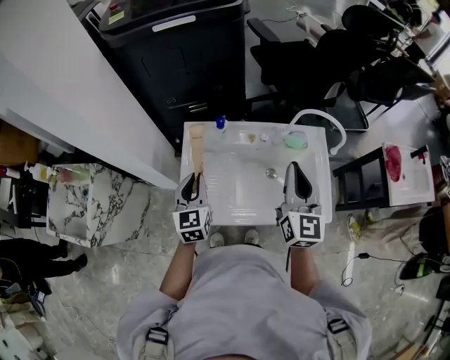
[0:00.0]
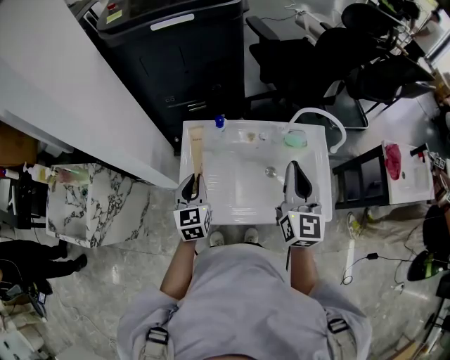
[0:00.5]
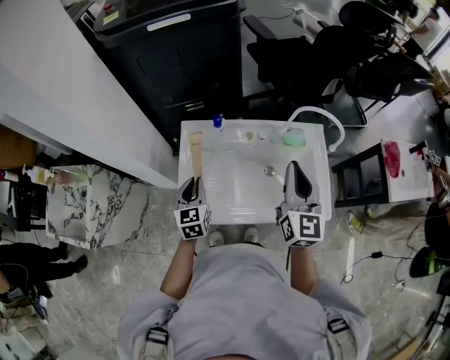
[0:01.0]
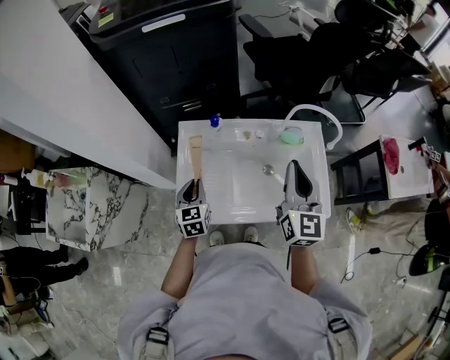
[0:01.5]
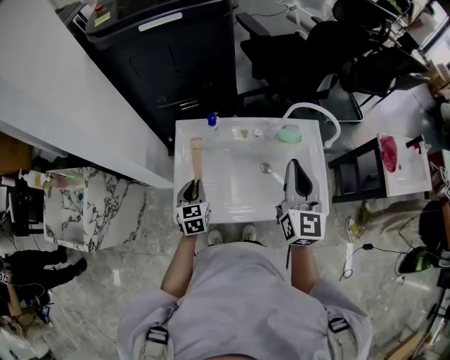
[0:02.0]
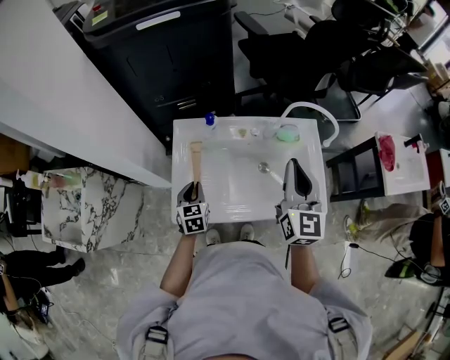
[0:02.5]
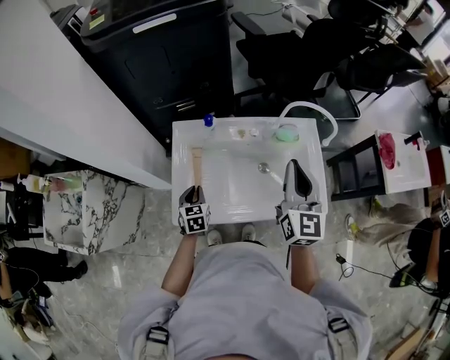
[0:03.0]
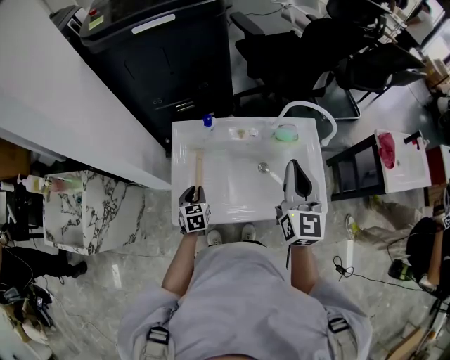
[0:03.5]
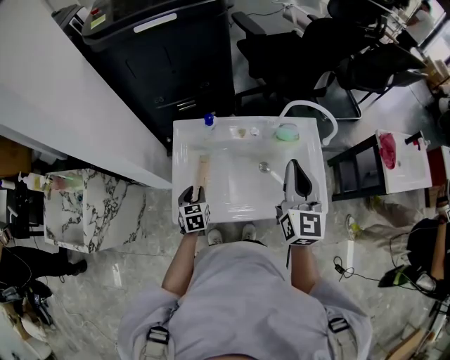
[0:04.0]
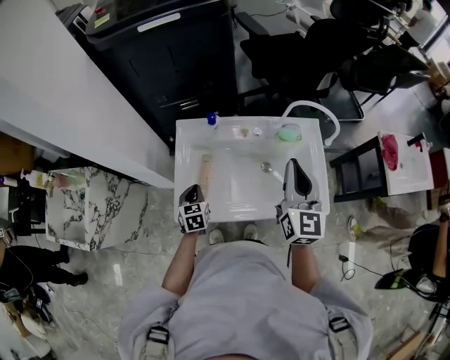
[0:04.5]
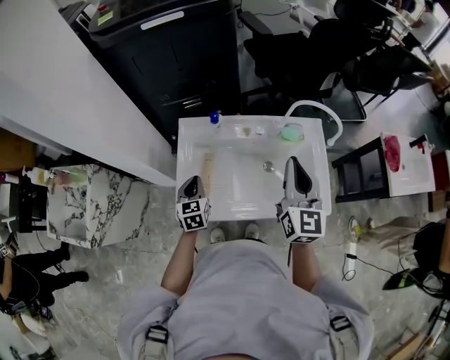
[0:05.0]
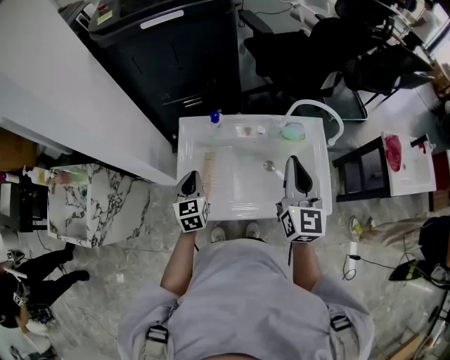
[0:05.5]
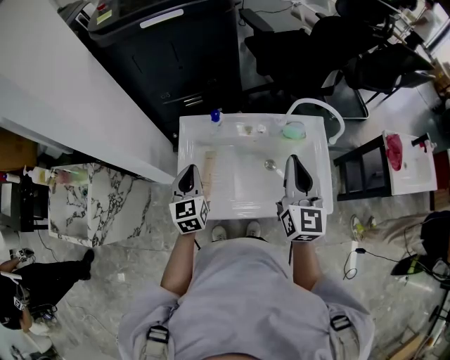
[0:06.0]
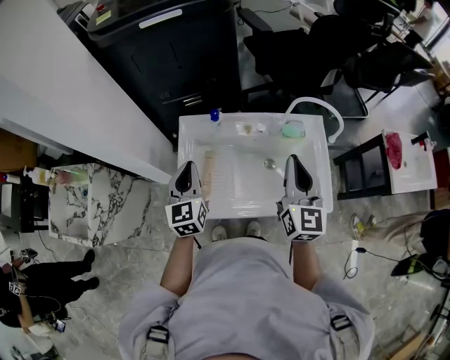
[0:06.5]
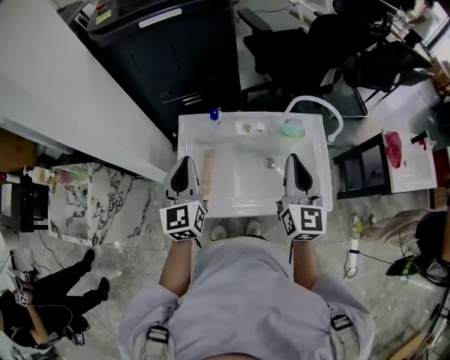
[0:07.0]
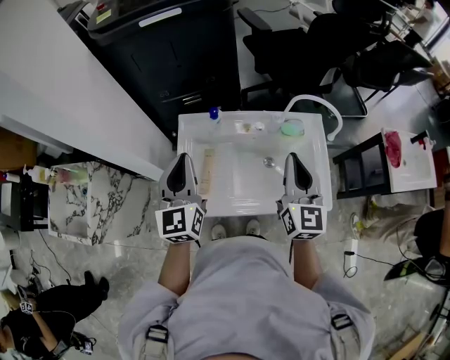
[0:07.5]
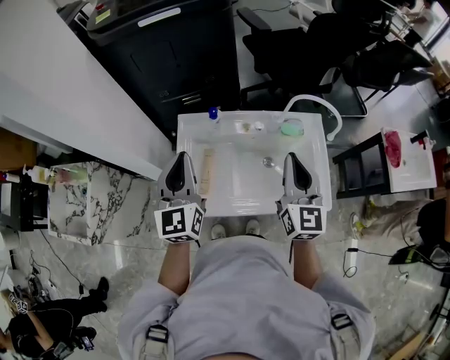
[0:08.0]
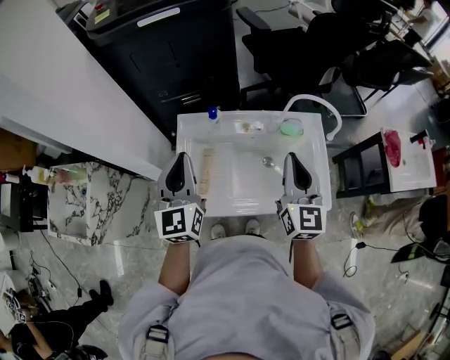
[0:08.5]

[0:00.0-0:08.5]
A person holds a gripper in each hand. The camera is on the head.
0:00.0 to 0:02.0: The left gripper goes about 10 cm downward.
0:02.0 to 0:04.0: The left gripper is displaced downward by approximately 5 cm.
0:04.0 to 0:06.5: The left gripper shifts roughly 20 cm upward, turns by approximately 30 degrees, and closes its fingers.
0:06.5 to 0:08.5: The left gripper goes about 10 cm upward.

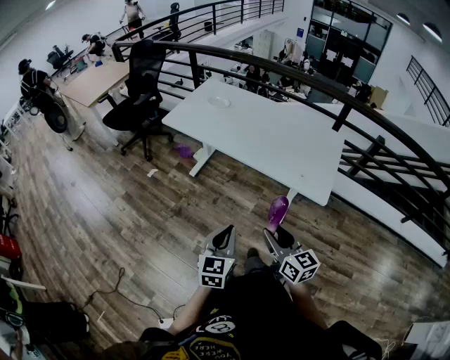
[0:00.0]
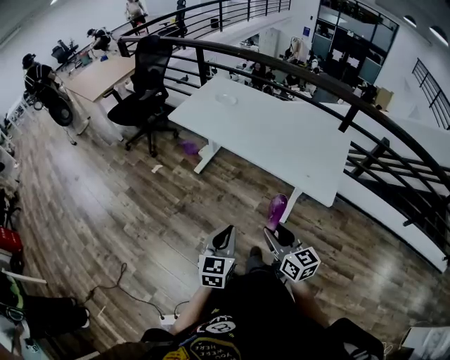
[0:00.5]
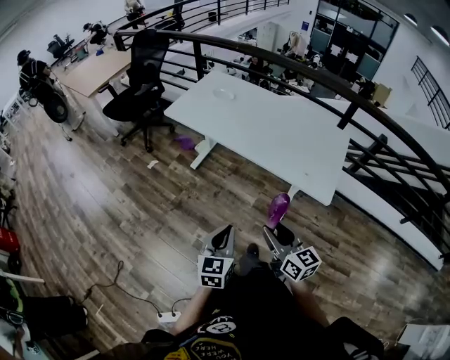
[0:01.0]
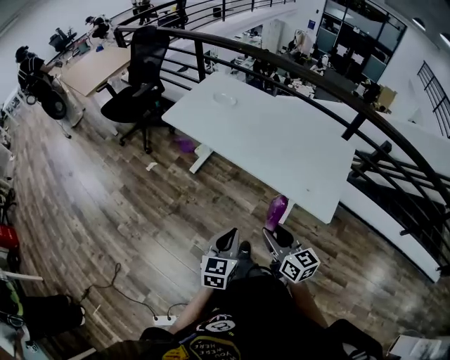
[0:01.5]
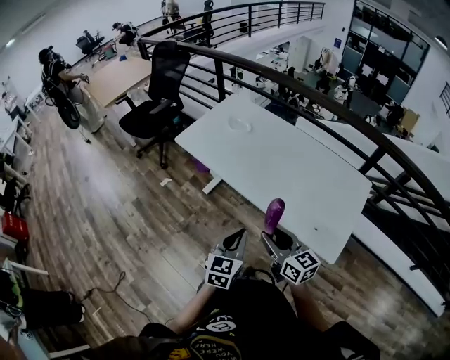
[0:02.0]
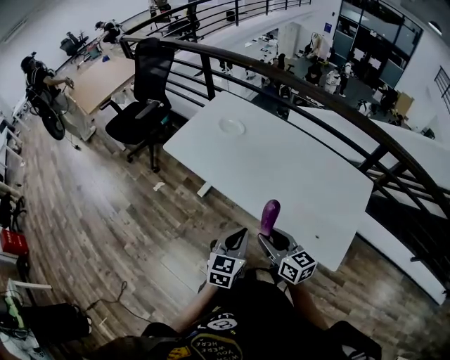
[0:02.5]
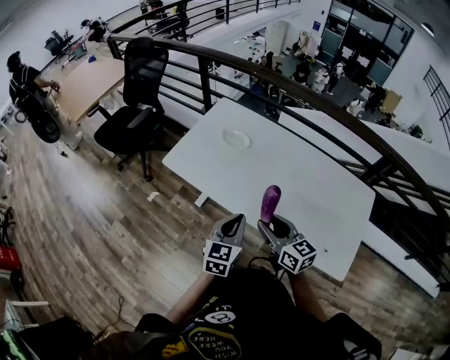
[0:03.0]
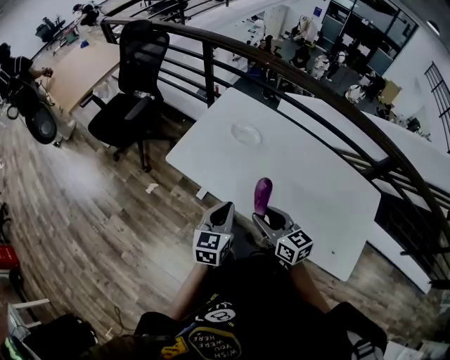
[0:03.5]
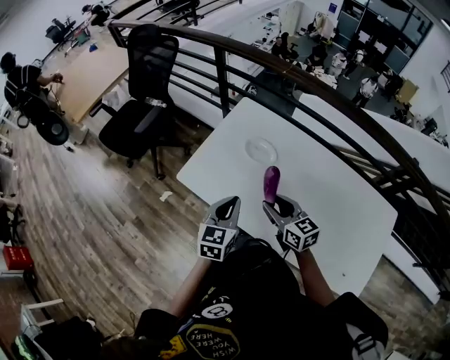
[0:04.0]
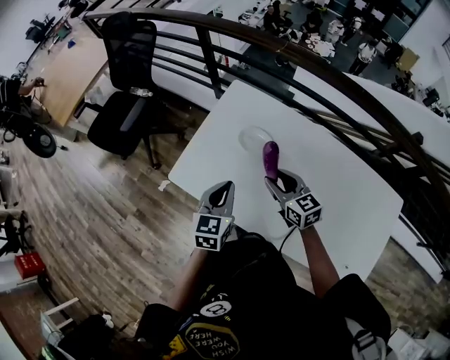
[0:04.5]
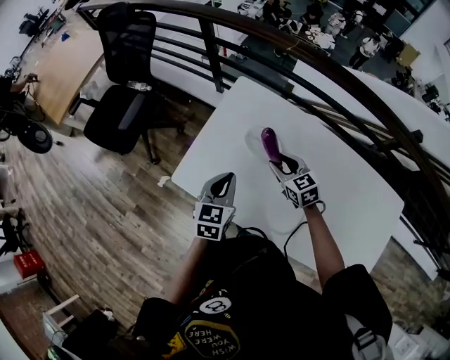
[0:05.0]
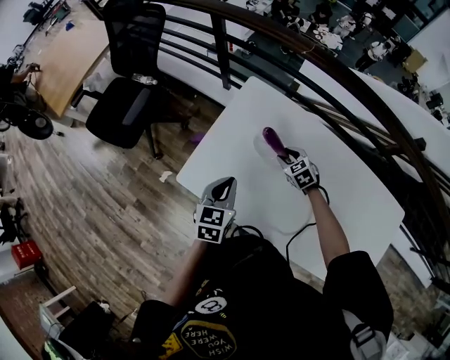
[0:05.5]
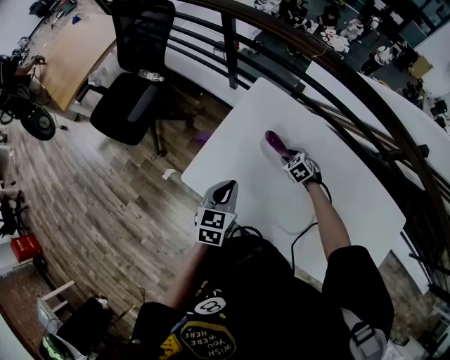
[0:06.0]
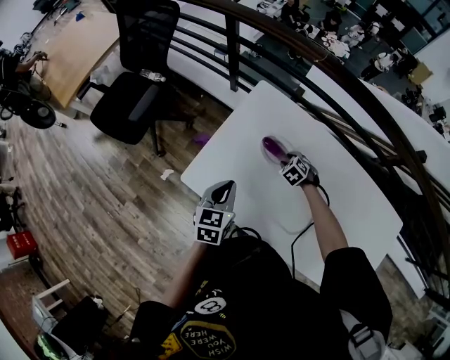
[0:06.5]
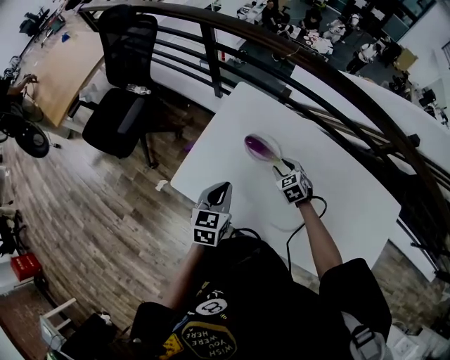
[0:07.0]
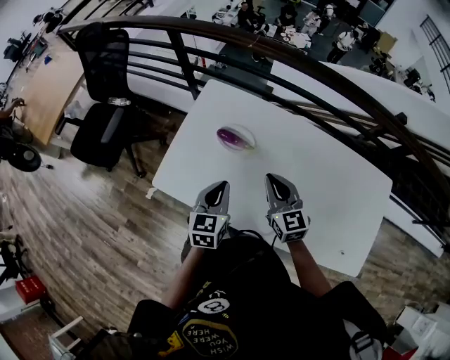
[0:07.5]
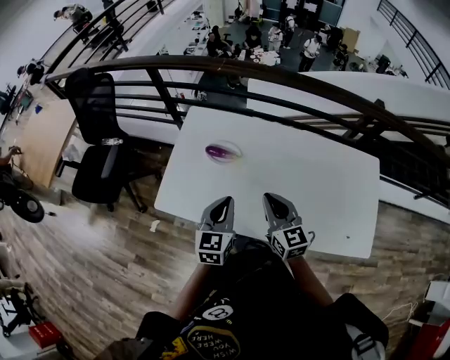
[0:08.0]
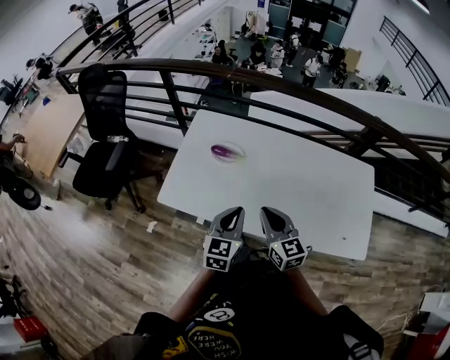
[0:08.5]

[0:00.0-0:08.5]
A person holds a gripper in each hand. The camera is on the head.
0:00.0 to 0:02.0: Both grippers move forward, approximately 25 cm.
0:02.0 to 0:04.0: The two grippers travel together, forward, roughly 50 cm.
0:04.0 to 0:06.5: The right gripper heads downward and forward, covering some 40 cm, and angles its fingers downward, by roughly 50 degrees; the left gripper shifts approximately 20 cm forward, downward and to the left.
0:06.5 to 0:08.5: The left gripper heads backward, to the right and upward, covering roughly 25 cm, and turns by approximately 30 degrees. Meanwhile the right gripper is displaced backward and upward by about 50 cm, points its fingers some 60 degrees further upward, and closes its fingers.

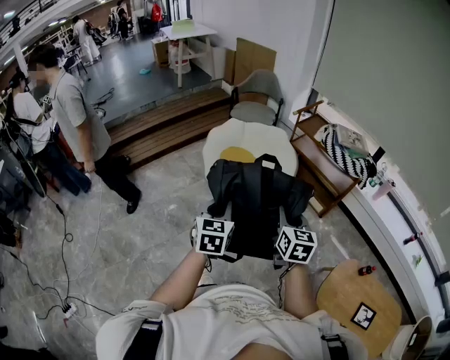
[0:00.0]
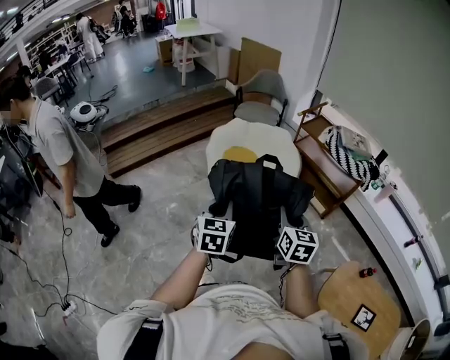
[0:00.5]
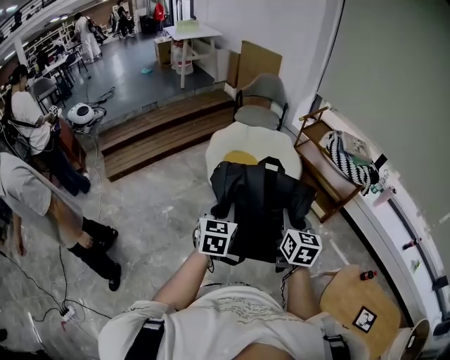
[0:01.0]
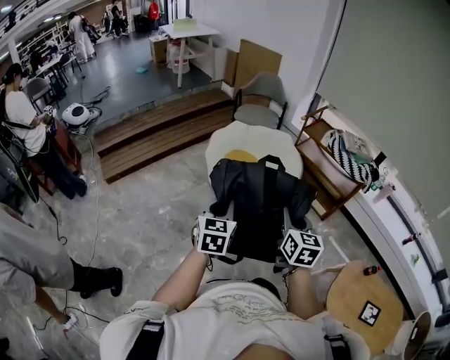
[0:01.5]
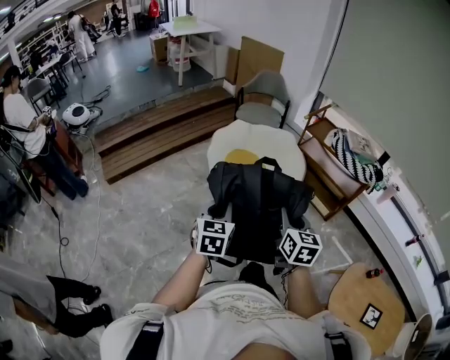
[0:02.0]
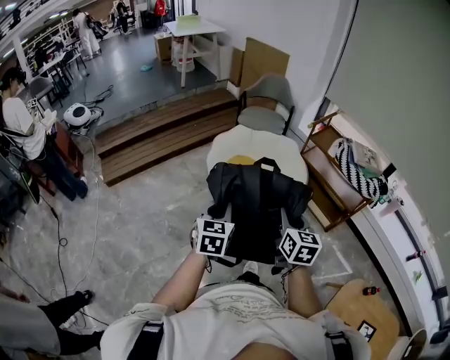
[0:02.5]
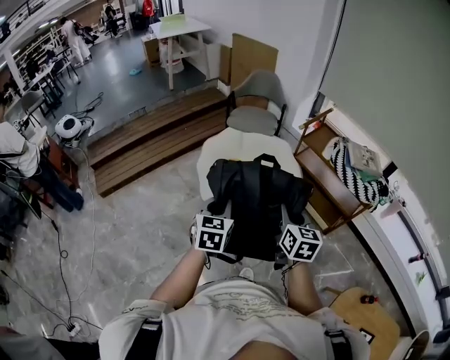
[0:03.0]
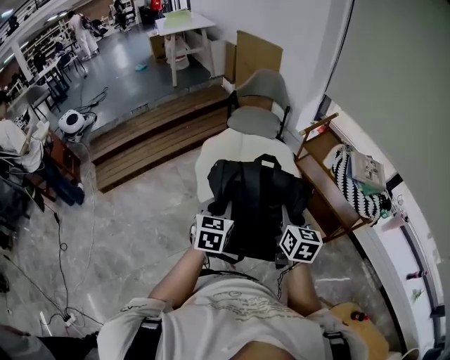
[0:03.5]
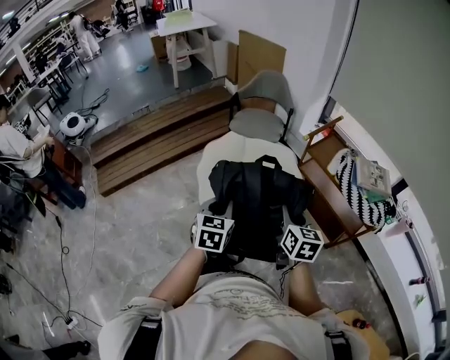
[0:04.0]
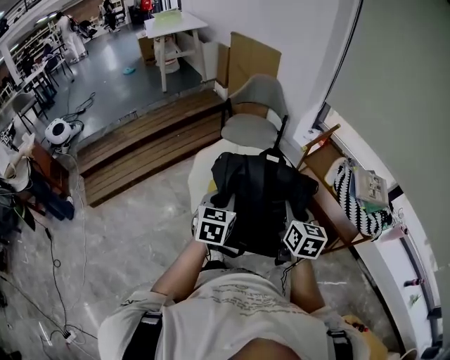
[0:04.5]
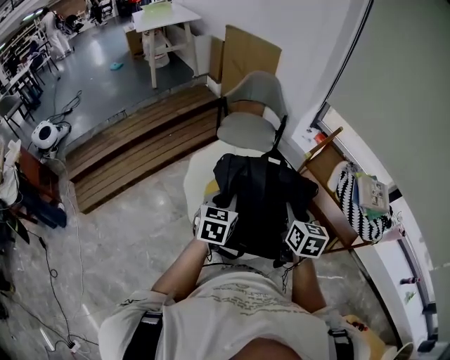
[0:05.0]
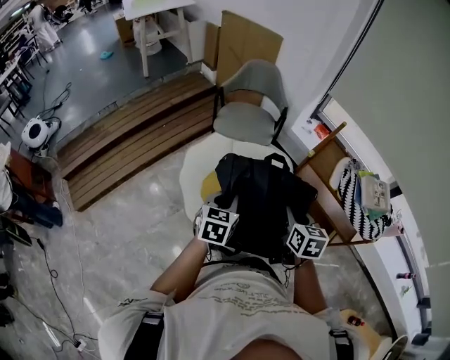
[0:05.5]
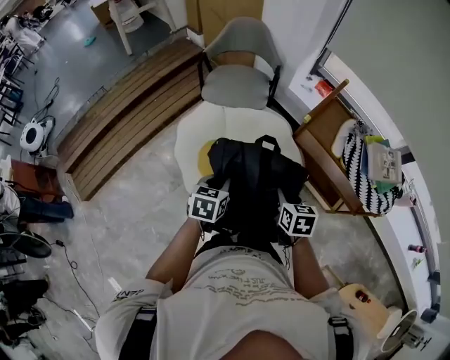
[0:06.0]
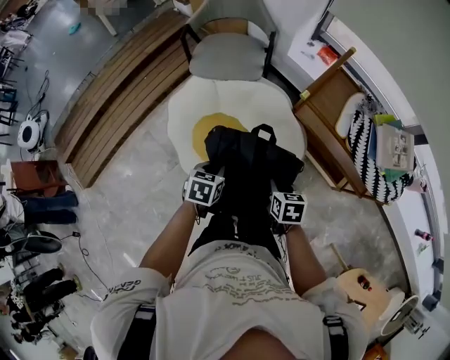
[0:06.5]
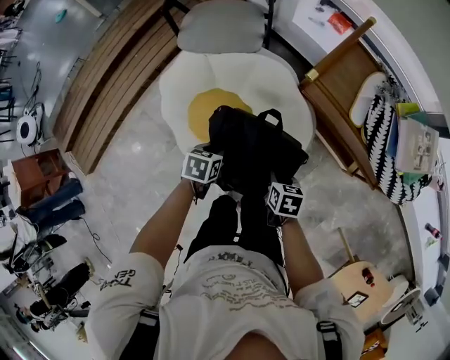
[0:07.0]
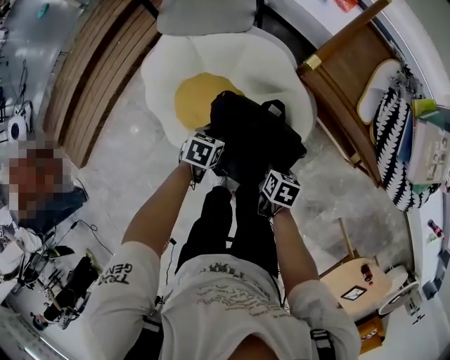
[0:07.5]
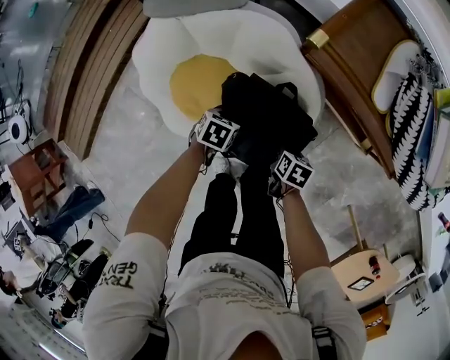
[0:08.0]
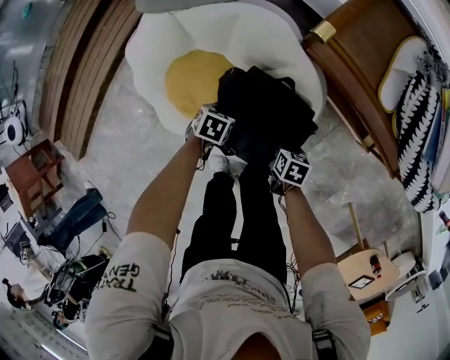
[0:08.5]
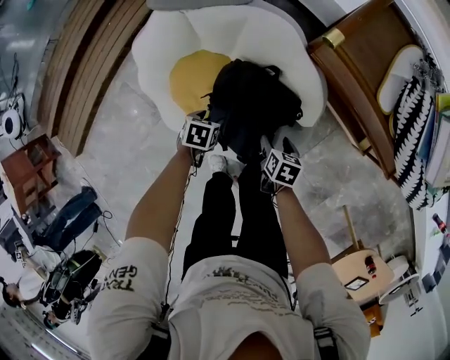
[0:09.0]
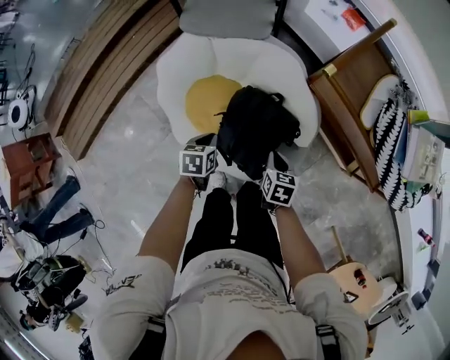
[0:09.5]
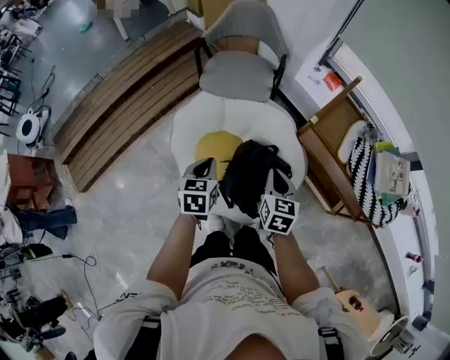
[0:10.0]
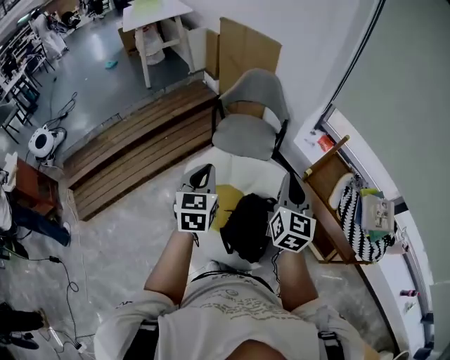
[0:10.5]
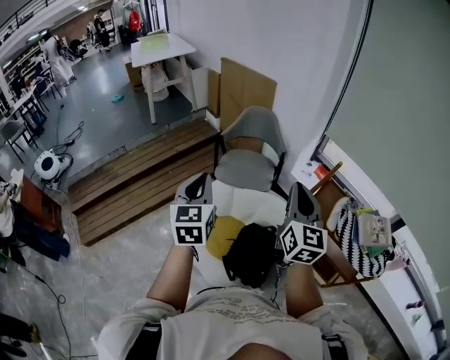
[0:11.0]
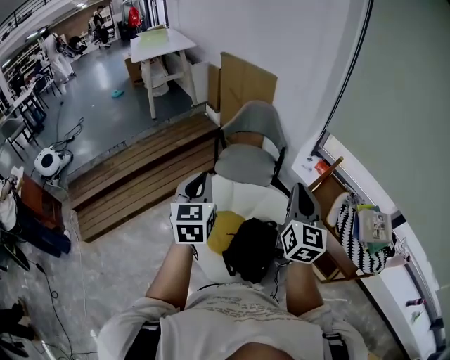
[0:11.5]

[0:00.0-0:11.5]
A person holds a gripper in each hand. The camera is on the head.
0:00.0 to 0:02.0: Both grippers move to the left, some 10 cm.
0:02.0 to 0:04.0: The two grippers go roughly 35 cm forward and to the right.
0:04.0 to 0:06.0: The two grippers go about 25 cm forward and downward. The right gripper rotates approximately 20 degrees, while the left gripper rotates approximately 30 degrees.
0:06.0 to 0:07.5: The grippers both shift downward by roughly 30 cm. The right gripper rotates approximately 30 degrees. The left gripper changes its angle by some 30 degrees.
0:07.5 to 0:09.5: The left gripper is displaced to the left by about 5 cm, reaches approximately 10 cm downward, then returns, turns by roughly 20 degrees, and opens and closes again, while the right gripper reaches approximately 10 cm downward, then returns, and opens, then closes again.
0:09.5 to 0:11.5: The two grippers go roughly 50 cm upward. The left gripper tips its fingers upward by approximately 50 degrees, while the right gripper tilts its fingers about 60 degrees upward.
